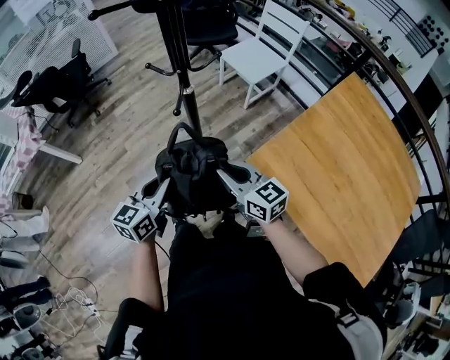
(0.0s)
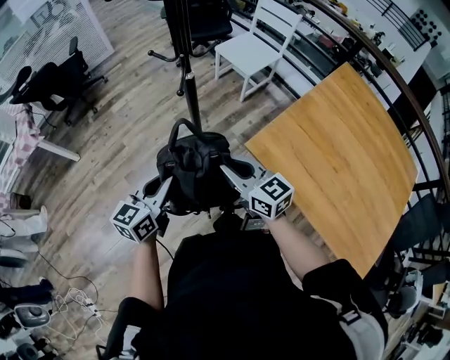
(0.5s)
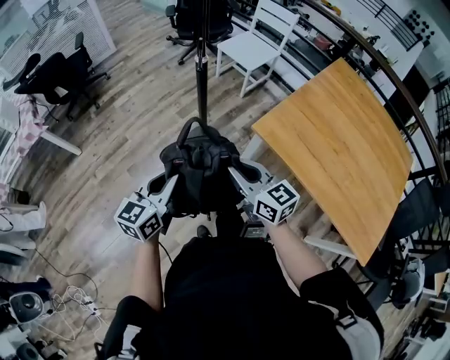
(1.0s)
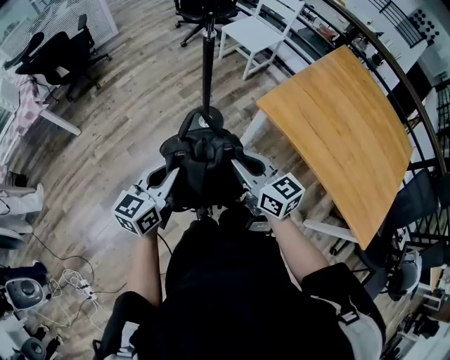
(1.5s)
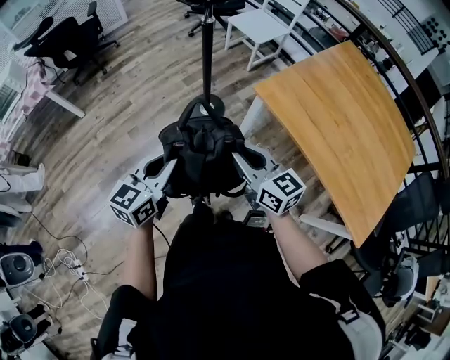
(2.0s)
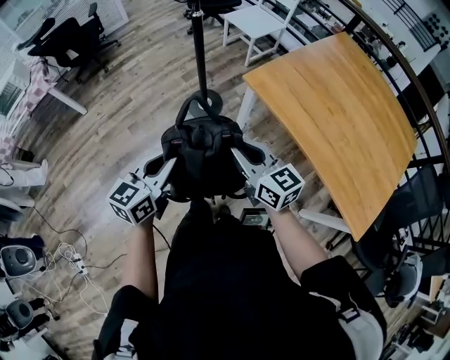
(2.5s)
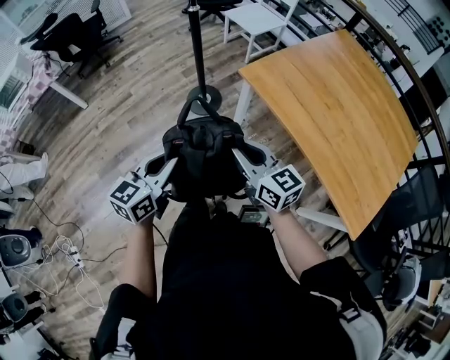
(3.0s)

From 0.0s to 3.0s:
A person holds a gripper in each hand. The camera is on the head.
From 0.0s to 1.5s: The grippers both shift backward by about 20 cm.
From 1.5s to 3.0s: Both grippers move backward and to the right, some 15 cm.

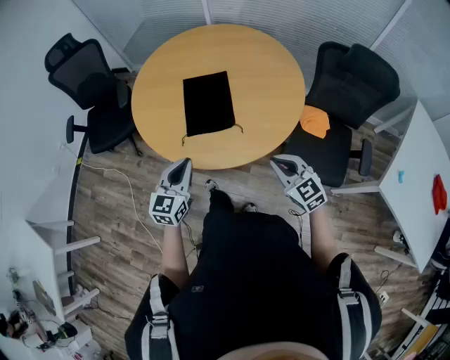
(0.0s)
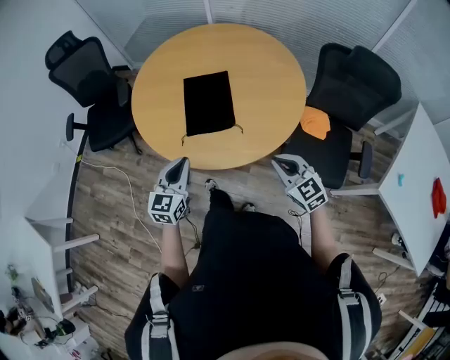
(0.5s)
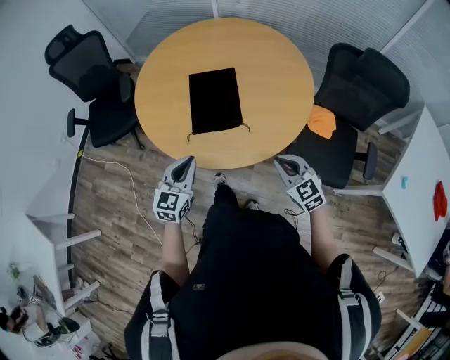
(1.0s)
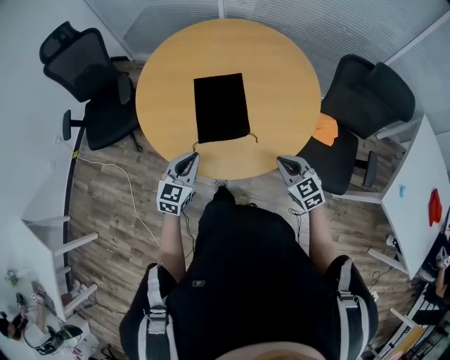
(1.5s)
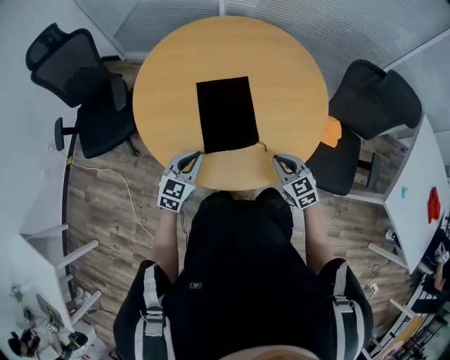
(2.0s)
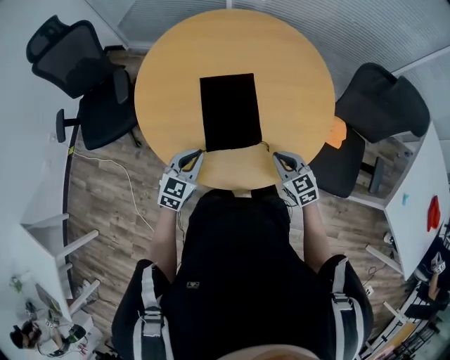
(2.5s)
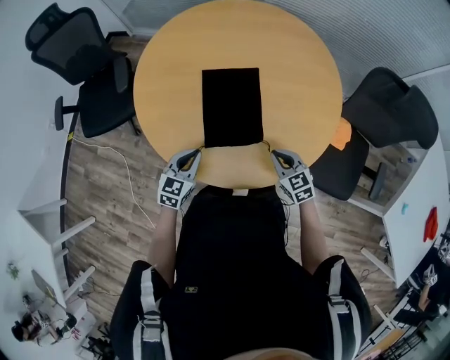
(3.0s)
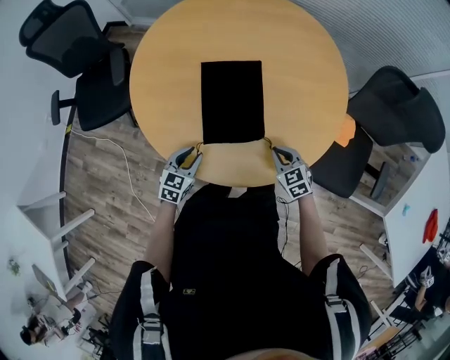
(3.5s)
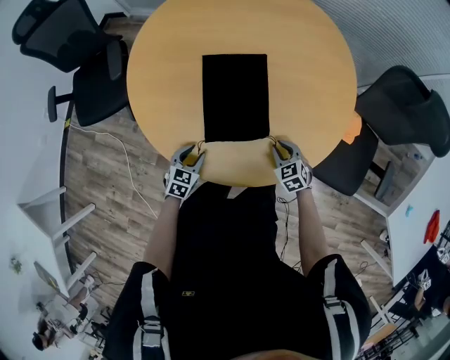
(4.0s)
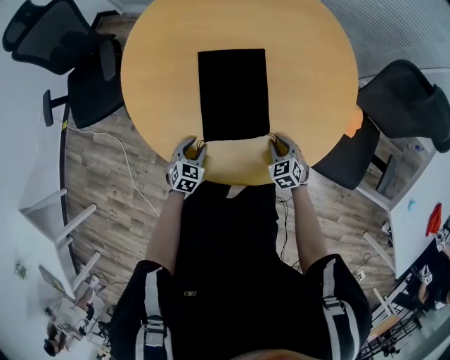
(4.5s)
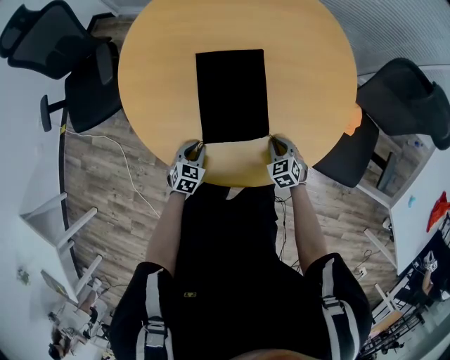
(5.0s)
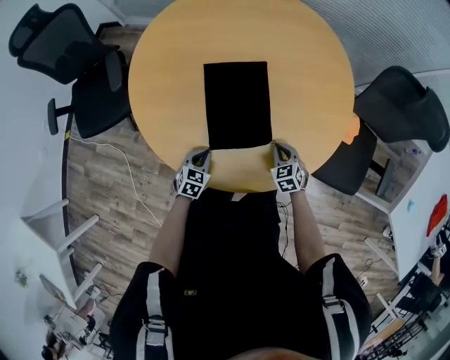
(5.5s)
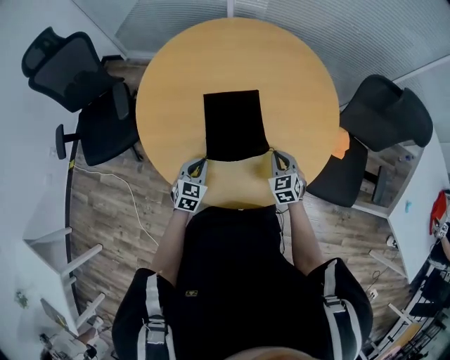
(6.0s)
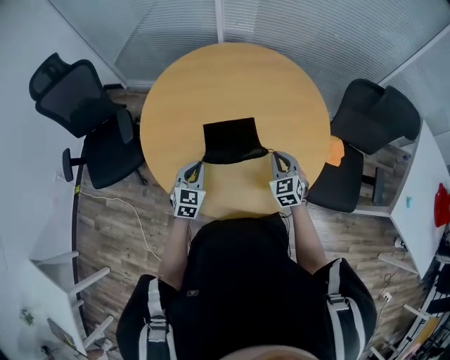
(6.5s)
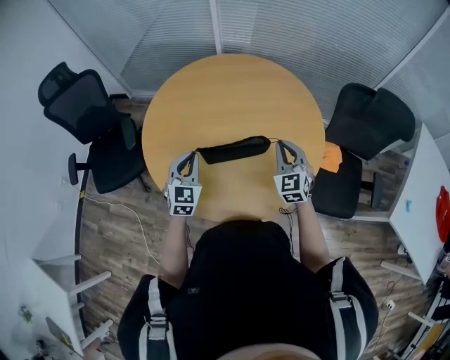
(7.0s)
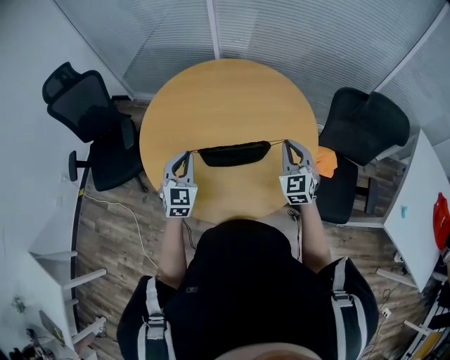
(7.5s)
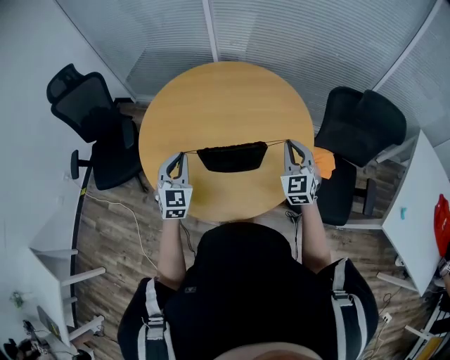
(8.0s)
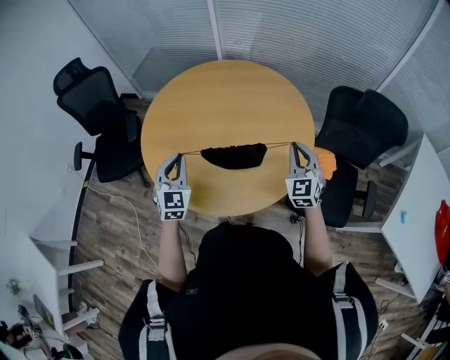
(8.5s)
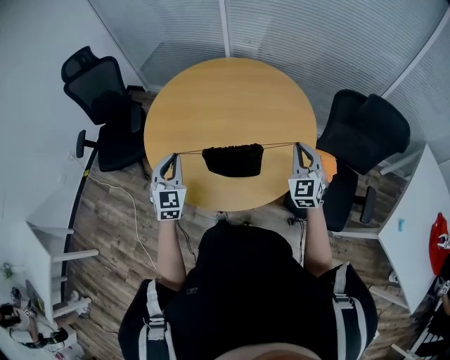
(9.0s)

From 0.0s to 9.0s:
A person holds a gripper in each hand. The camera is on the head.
From 0.0s to 2.0s: The left gripper is displaced forward and downward by some 20 cm. Meanwhile the right gripper moves forward, downward and to the left, some 20 cm.
From 2.0s to 4.5s: Both grippers travel together downward, about 20 cm. The left gripper rotates some 30 degrees, and opens its fingers. The right gripper swivels about 20 degrees.
From 4.5s to 7.0s: The two grippers go some 30 cm upward. The right gripper tilts its fingers about 40 degrees upward. The left gripper tips its fingers upward by some 30 degrees, and closes.
From 7.0s to 9.0s: The right gripper is displaced to the right and backward by roughly 15 cm, while the left gripper moves backward and upward, about 10 cm.

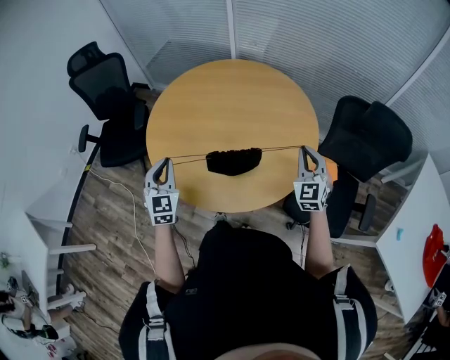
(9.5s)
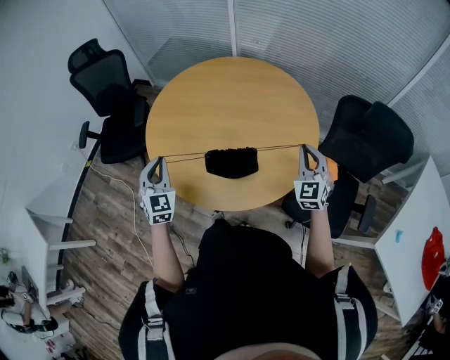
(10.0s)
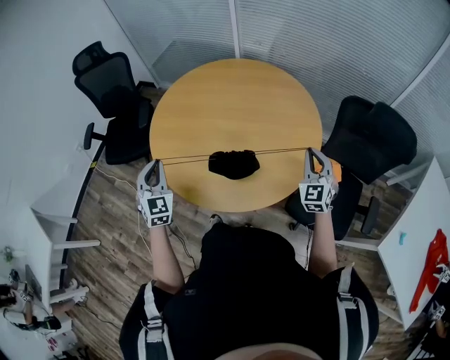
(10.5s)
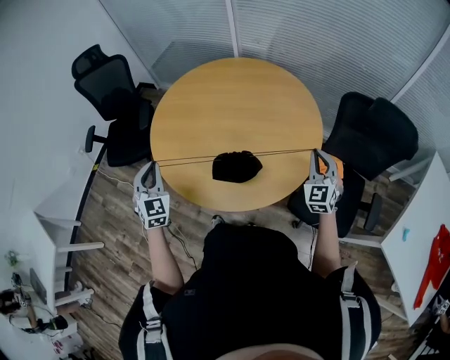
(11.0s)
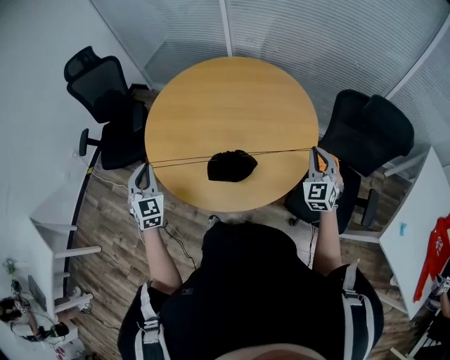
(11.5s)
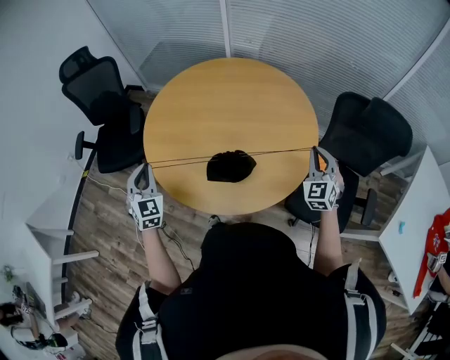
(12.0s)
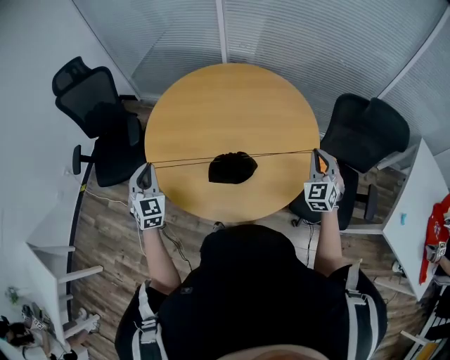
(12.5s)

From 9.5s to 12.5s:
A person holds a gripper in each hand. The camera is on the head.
From 9.5s to 11.0s: The right gripper moves some 5 cm.
From 11.0s to 12.5s: The right gripper moves approximately 5 cm, while the left gripper travels forward and to the left by roughly 10 cm.

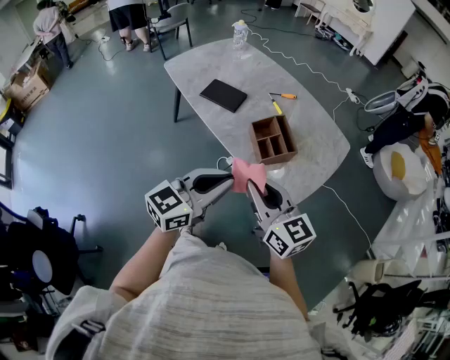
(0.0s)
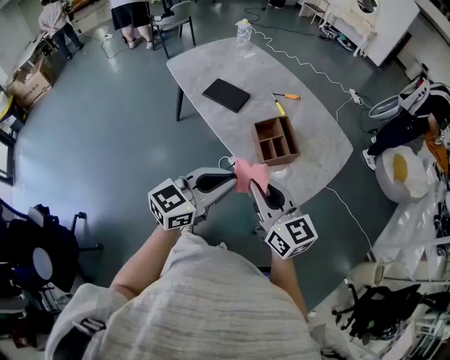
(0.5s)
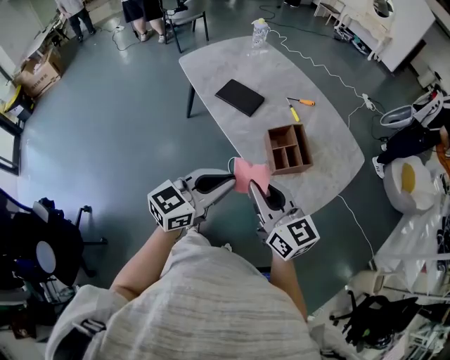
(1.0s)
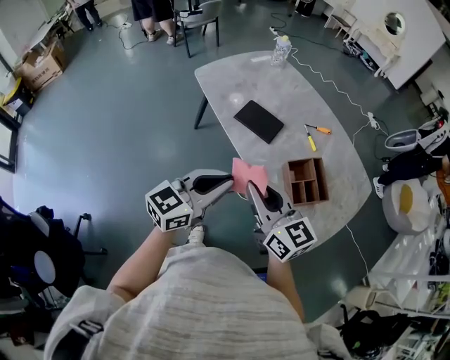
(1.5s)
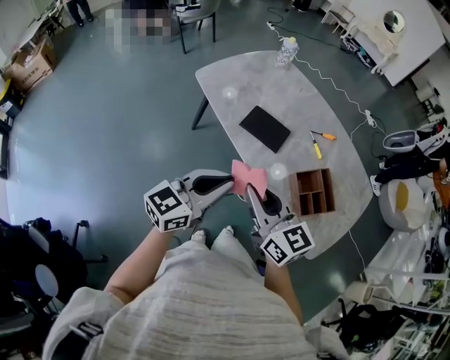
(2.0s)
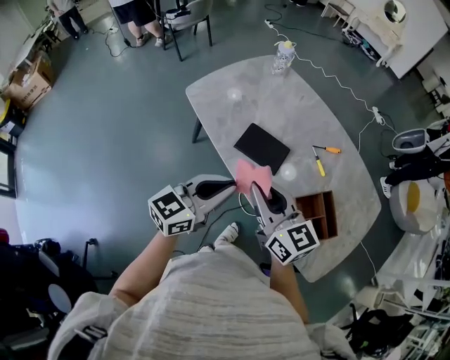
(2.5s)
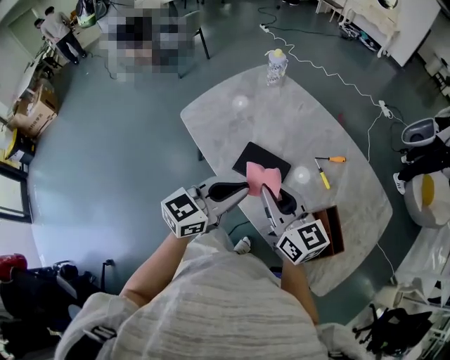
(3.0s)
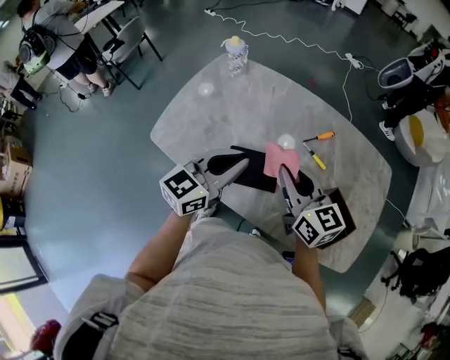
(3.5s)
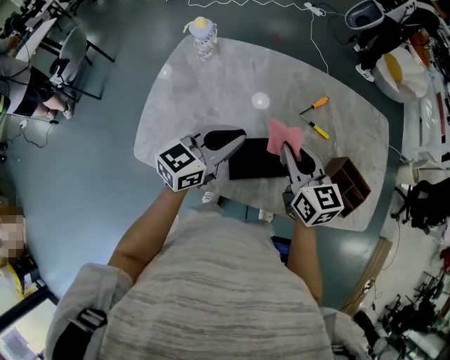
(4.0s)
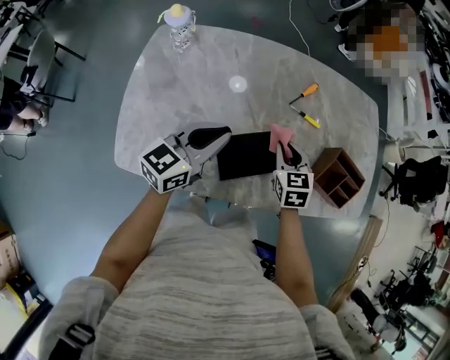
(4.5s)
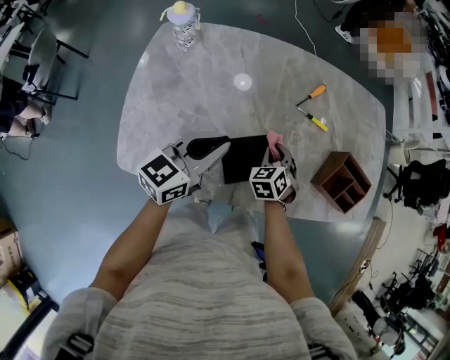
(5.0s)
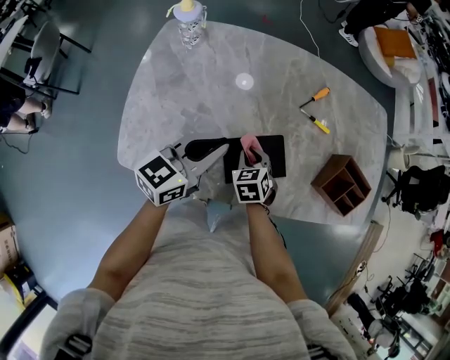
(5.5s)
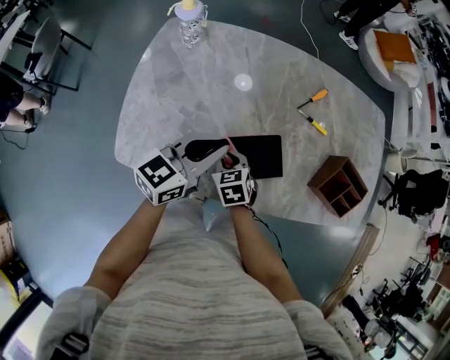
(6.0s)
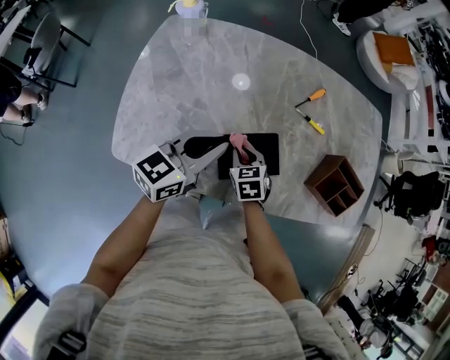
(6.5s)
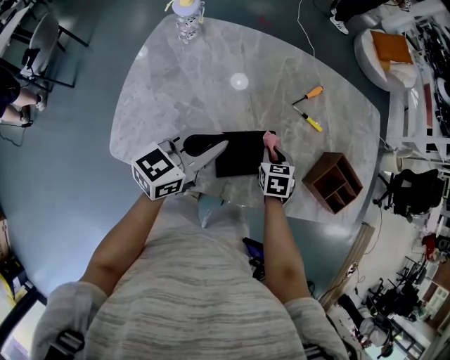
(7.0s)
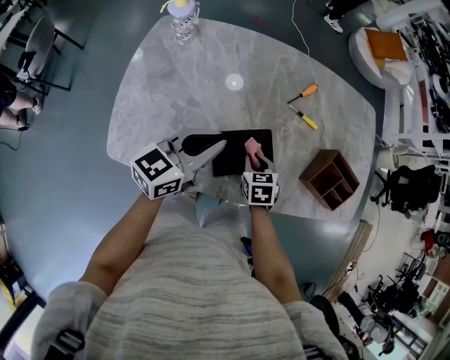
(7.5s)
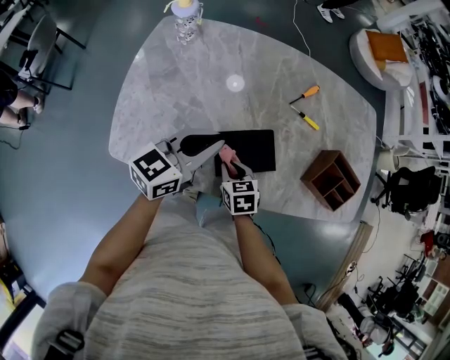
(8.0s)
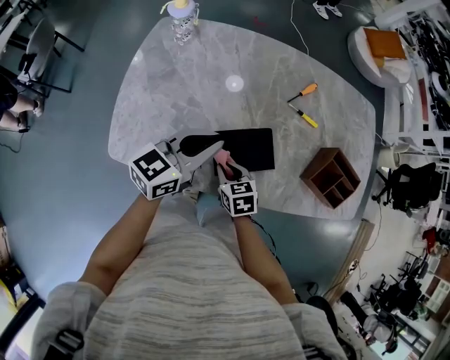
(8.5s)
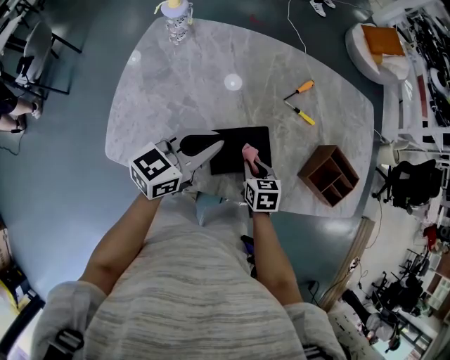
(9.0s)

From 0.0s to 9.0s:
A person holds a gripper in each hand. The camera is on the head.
From 0.0s to 2.0s: Both grippers move to the left and forward, roughly 30 cm.
From 2.0s to 4.5s: The pair of grippers is taken some 40 cm. The left gripper rotates some 40 degrees, while the right gripper points its fingers roughly 30 degrees further downward.
From 4.5s to 7.0s: The right gripper shifts approximately 10 cm downward, and reaches about 15 cm to the left, then returns.
From 7.0s to 9.0s: The right gripper goes about 5 cm backward.

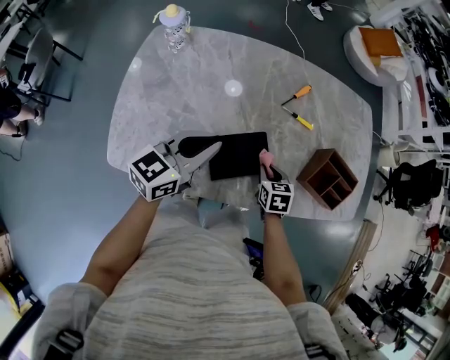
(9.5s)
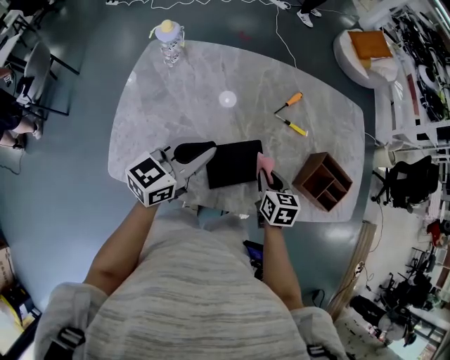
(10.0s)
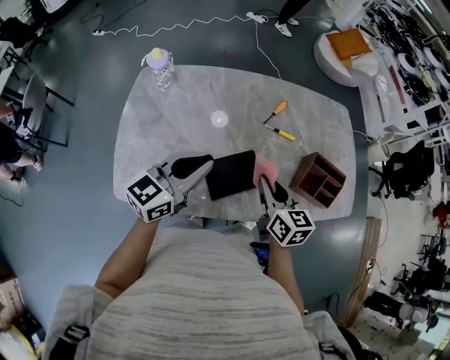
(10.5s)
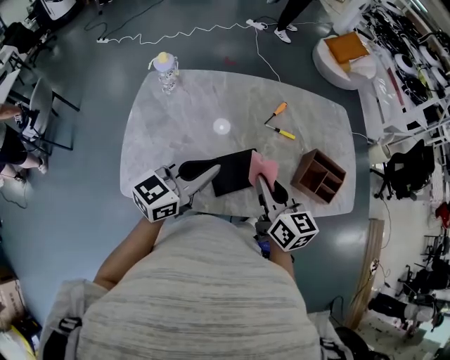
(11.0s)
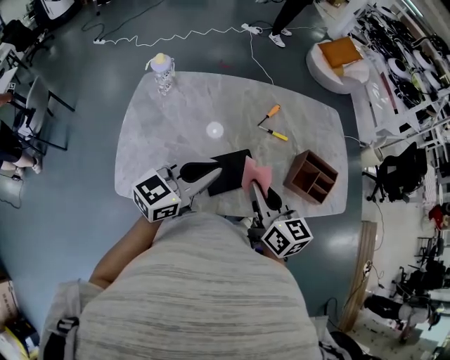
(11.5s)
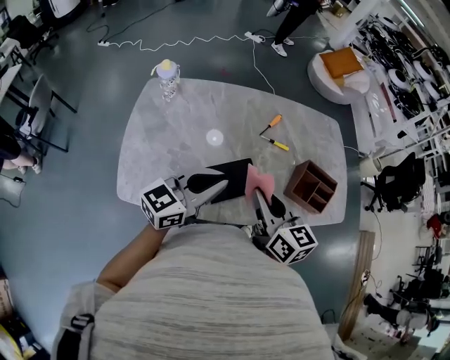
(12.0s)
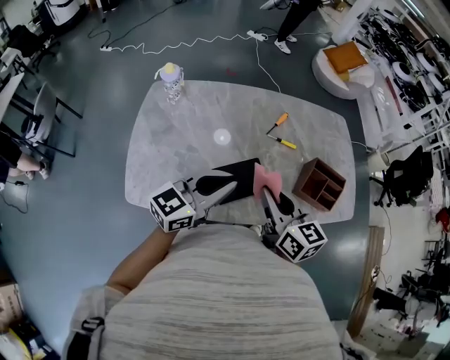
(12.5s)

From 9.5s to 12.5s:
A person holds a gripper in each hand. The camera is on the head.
From 9.5s to 11.0s: The left gripper is displaced upward and backward by some 10 cm. The right gripper moves upward, approximately 25 cm, and angles its fingers upward, by approximately 40 degrees.
From 11.0s to 12.5s: The grippers move only a little.
